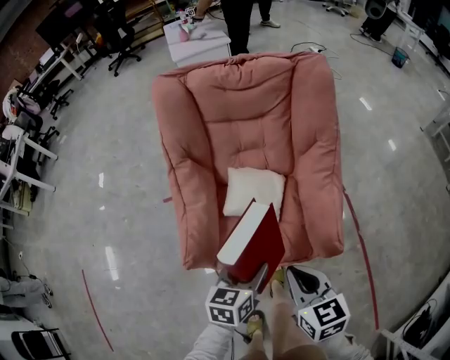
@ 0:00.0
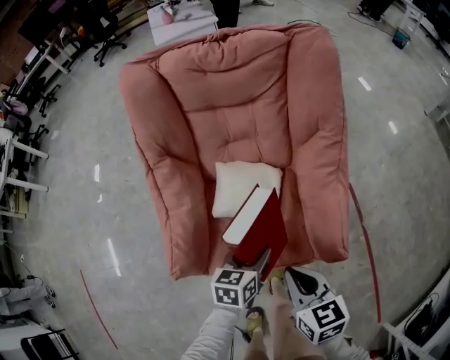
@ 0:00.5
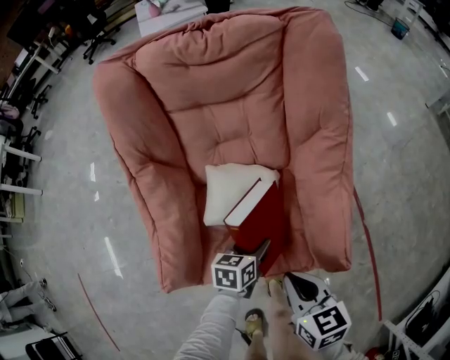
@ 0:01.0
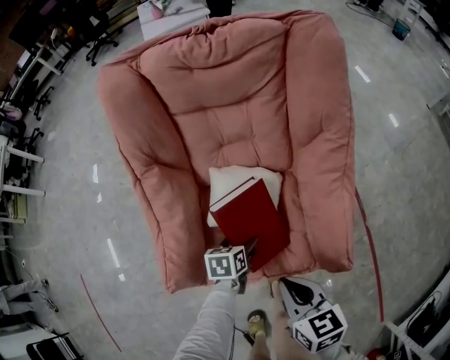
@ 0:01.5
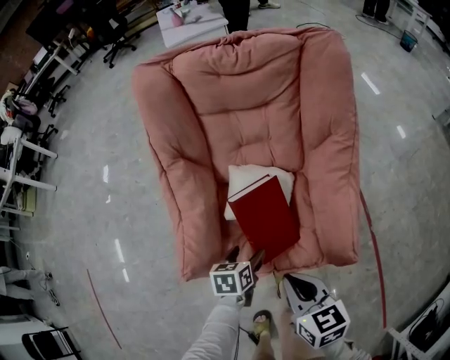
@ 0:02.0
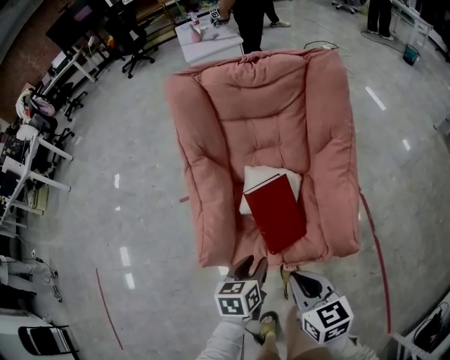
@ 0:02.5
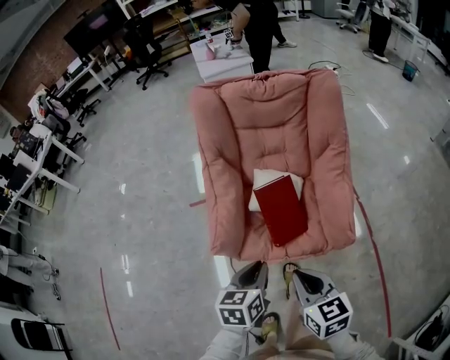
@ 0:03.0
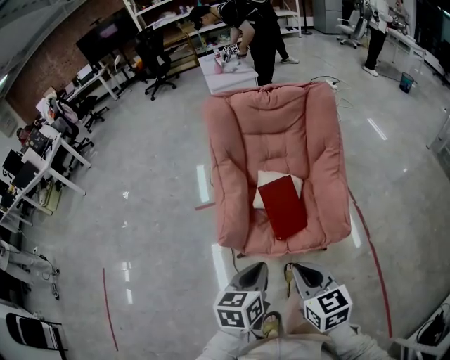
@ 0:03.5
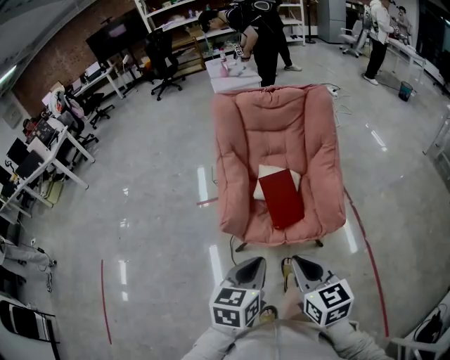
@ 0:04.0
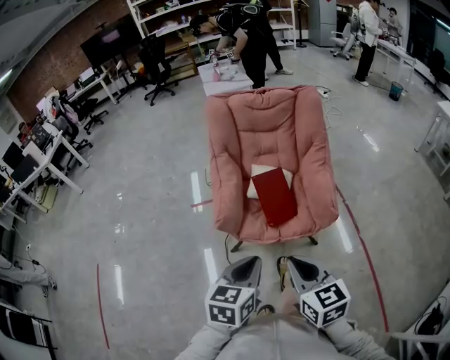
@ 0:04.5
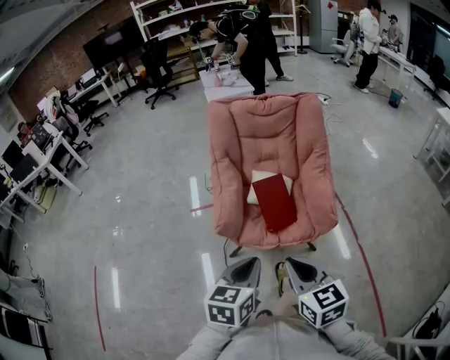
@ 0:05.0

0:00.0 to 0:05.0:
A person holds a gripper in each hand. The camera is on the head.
0:00.0 to 0:02.5: The right gripper goes downward and returns, some 10 cm each way. Meanwhile the left gripper moves approximately 20 cm downward and comes back, and opens, then closes again.
0:02.5 to 0:05.0: The two grippers go about 25 cm backward and upward. The left gripper turns by roughly 20 degrees, and closes.

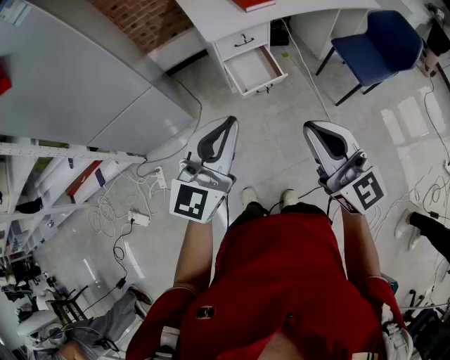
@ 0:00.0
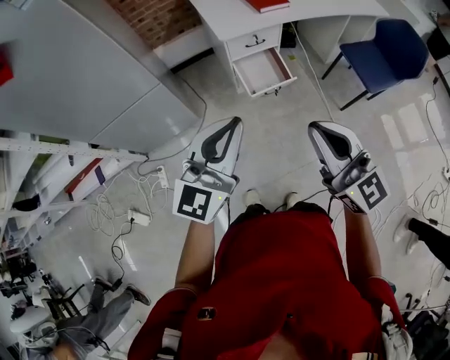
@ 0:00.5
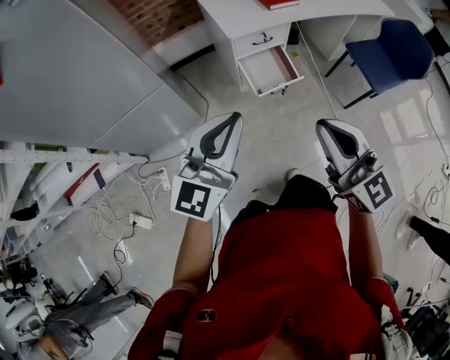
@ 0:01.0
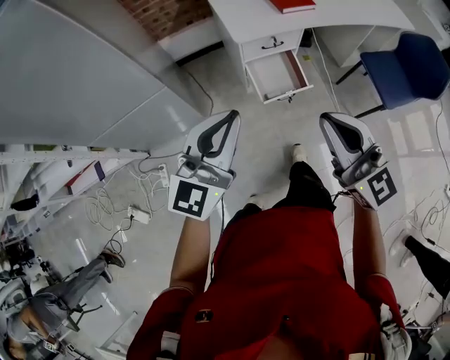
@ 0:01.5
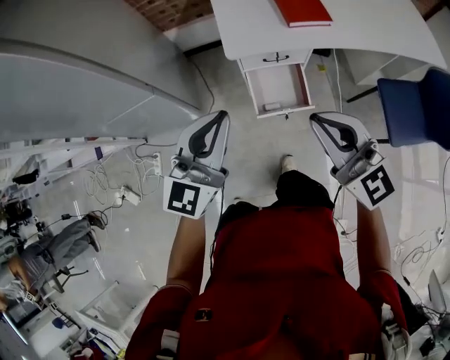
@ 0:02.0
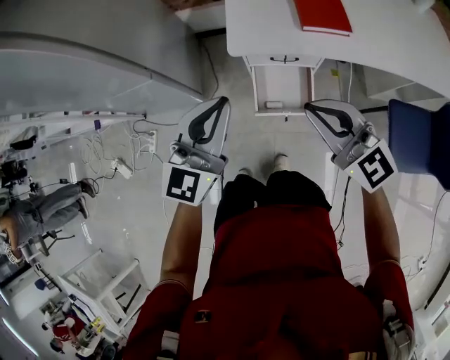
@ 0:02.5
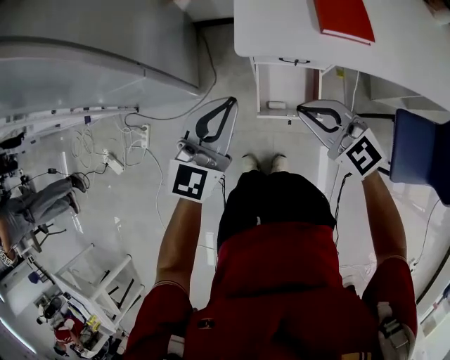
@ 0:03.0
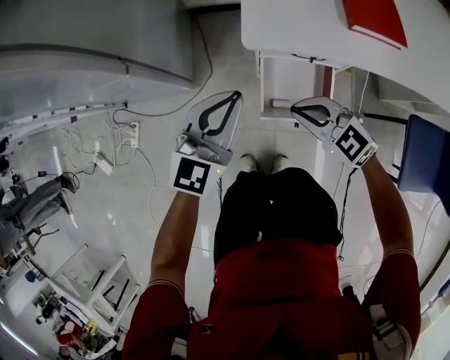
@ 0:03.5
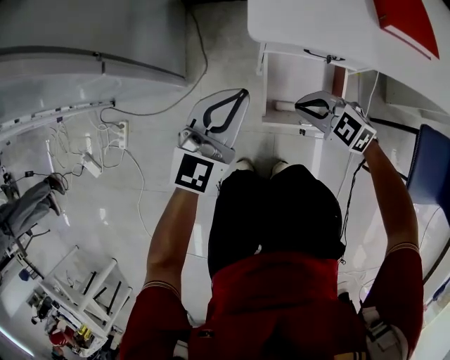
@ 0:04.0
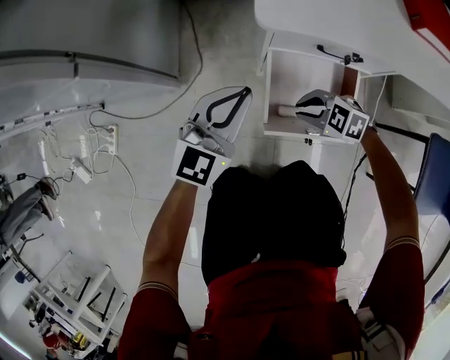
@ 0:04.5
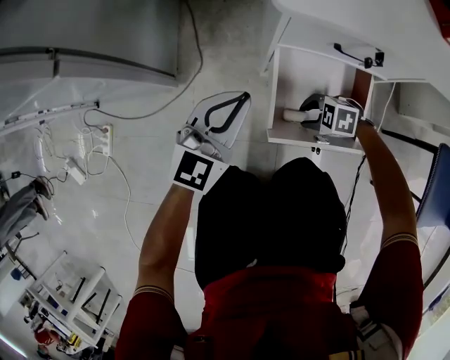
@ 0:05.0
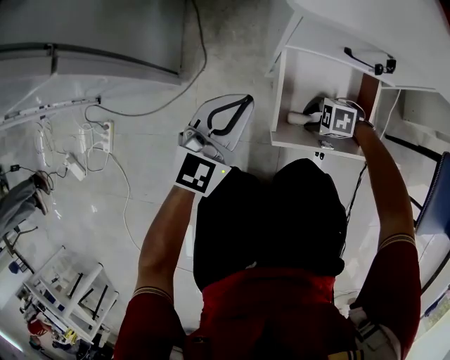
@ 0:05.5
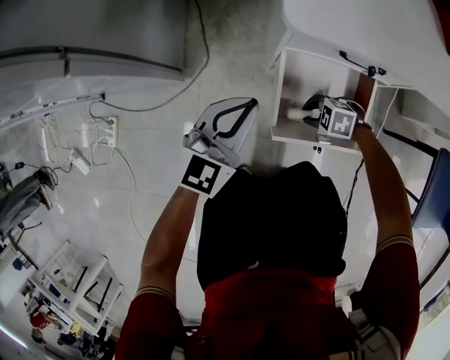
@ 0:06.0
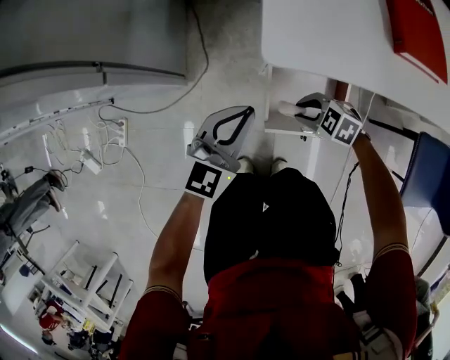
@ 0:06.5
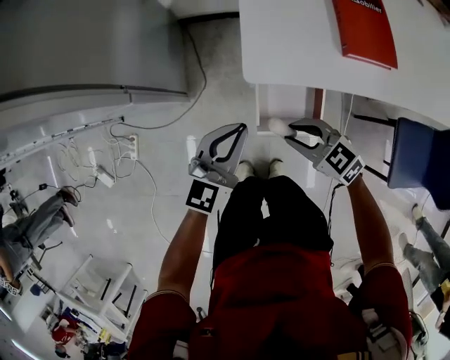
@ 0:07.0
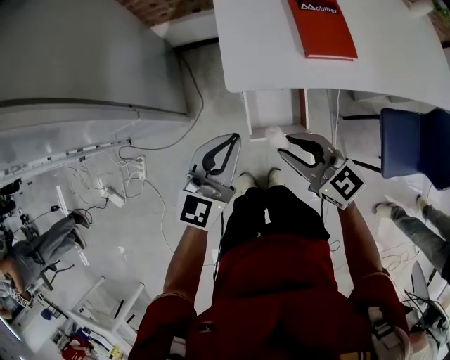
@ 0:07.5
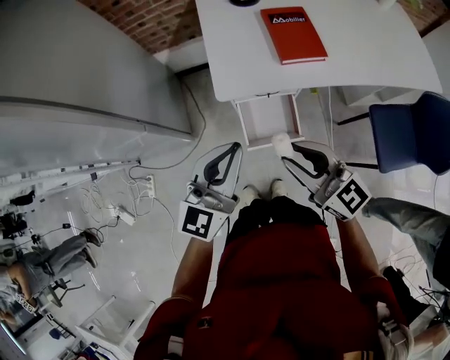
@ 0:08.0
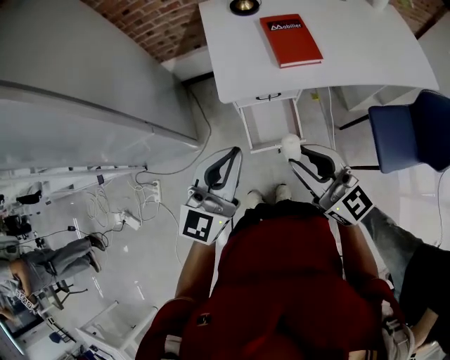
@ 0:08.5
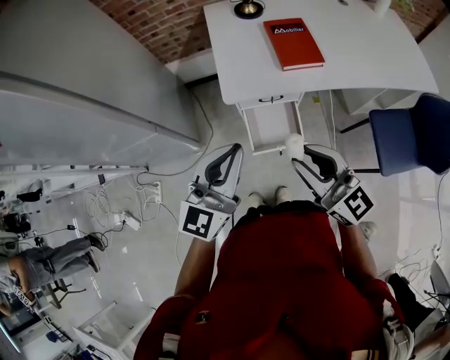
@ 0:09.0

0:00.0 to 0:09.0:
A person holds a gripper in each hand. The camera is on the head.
0:00.0 to 0:02.0: The grippers both shift forward by approximately 30 cm. The right gripper rotates roughly 20 degrees.
0:02.0 to 0:04.5: The two grippers go approximately 50 cm downward. The right gripper tilts its fingers roughly 50 degrees downward.
0:04.5 to 0:07.0: Both grippers travel together upward, some 25 cm. The right gripper swivels some 30 degrees.
0:07.0 to 0:09.0: The right gripper travels upward by some 30 cm, and tilts its fingers approximately 40 degrees upward. The left gripper goes some 25 cm upward and backward.

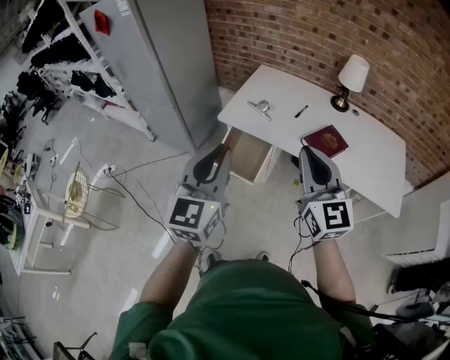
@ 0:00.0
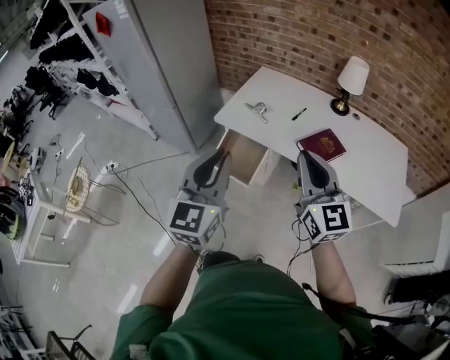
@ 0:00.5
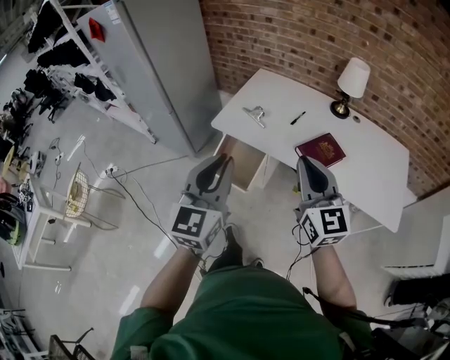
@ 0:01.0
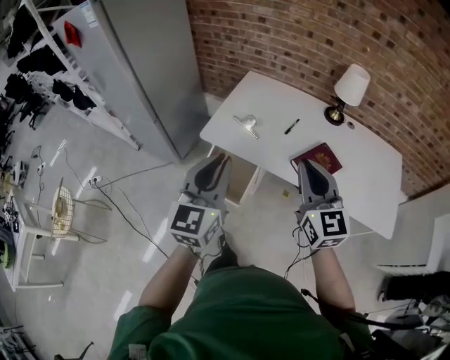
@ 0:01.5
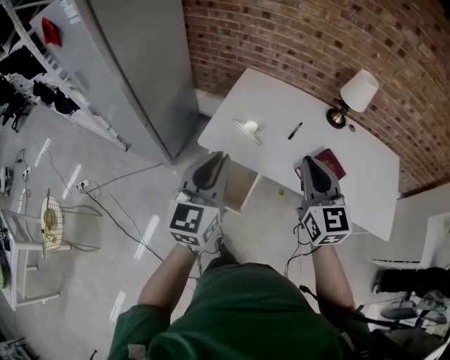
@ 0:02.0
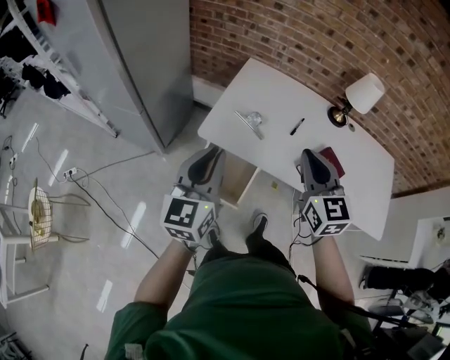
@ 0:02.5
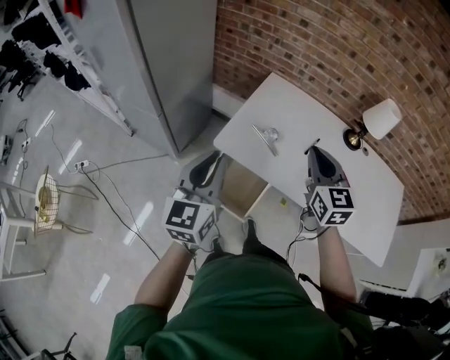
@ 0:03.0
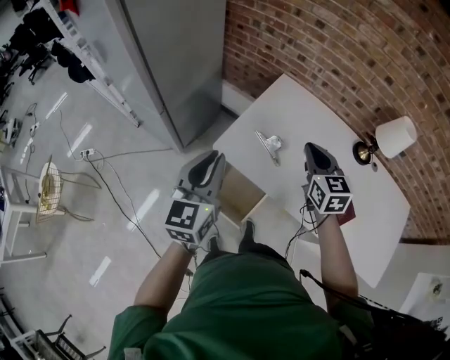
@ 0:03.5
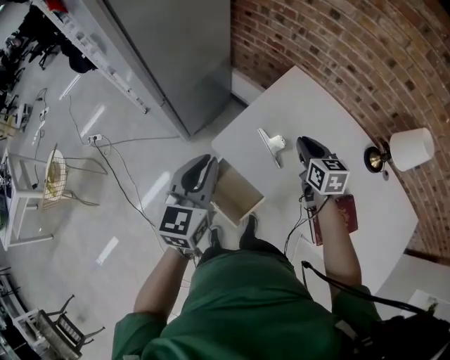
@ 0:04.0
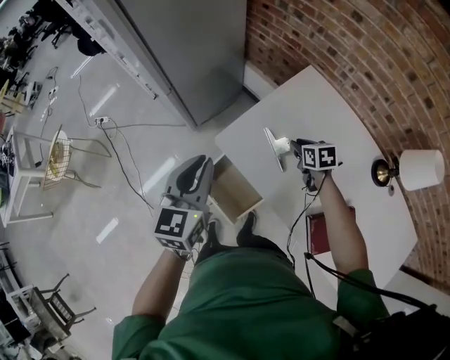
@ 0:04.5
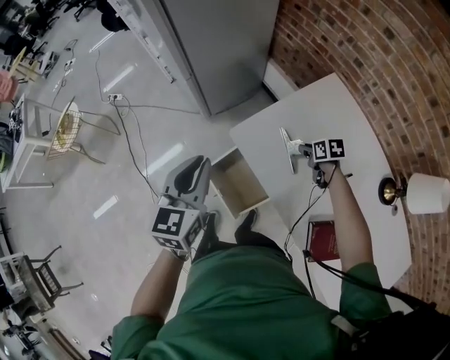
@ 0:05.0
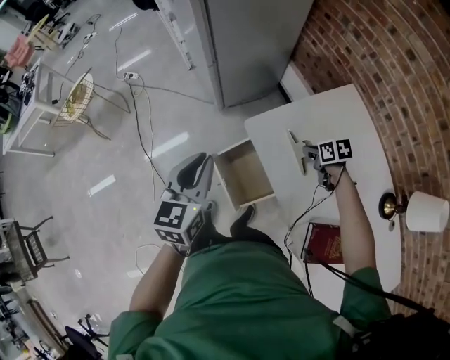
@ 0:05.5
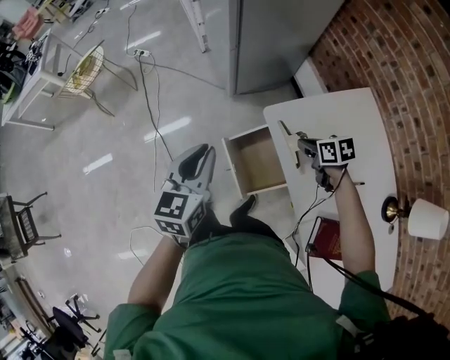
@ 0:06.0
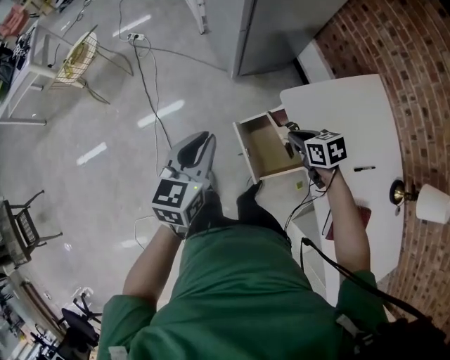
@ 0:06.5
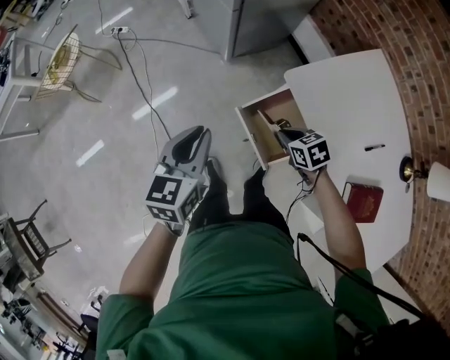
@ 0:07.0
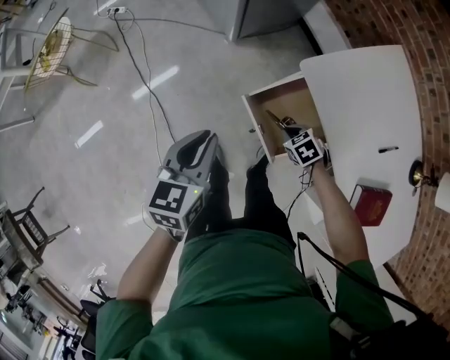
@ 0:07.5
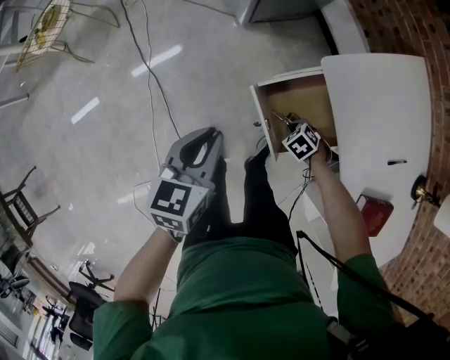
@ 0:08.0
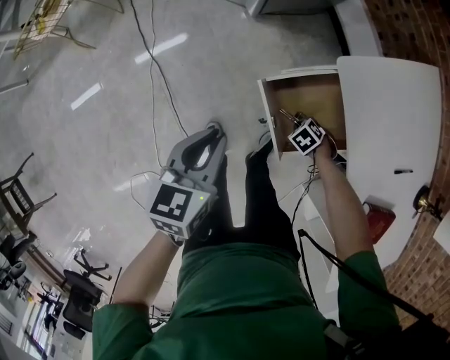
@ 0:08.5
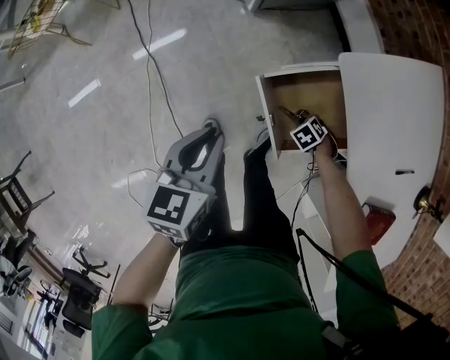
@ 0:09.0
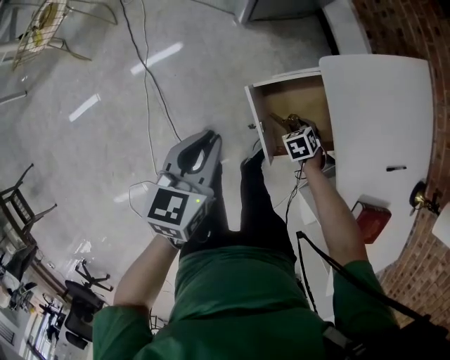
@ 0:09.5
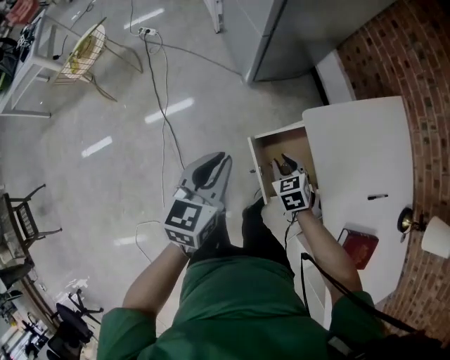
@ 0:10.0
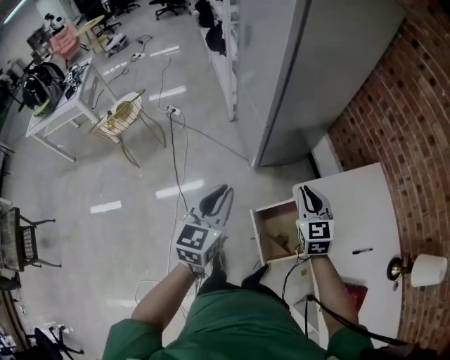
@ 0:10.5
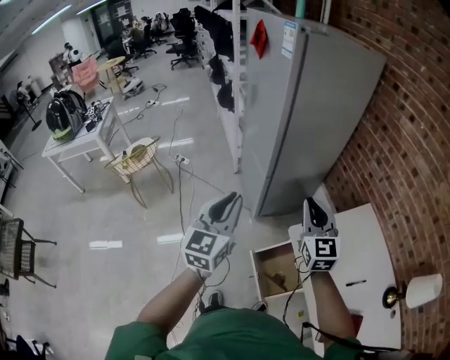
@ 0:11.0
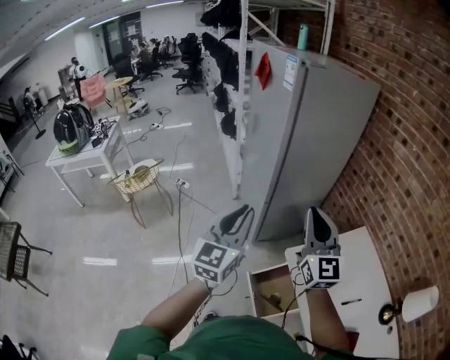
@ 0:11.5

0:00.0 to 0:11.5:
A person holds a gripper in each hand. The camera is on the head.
0:00.0 to 0:02.0: Both grippers travel together forward, approximately 25 cm.
0:02.0 to 0:04.0: The right gripper moves forward and downward, approximately 35 cm, and rotates approximately 40 degrees. The left gripper travels forward and downward by some 15 cm, and changes its angle by some 20 degrees.
0:04.0 to 0:06.0: The left gripper moves about 15 cm, and swivels about 30 degrees. Meanwhile the right gripper ends up roughly 20 cm from where it was, and changes its angle by about 50 degrees.
0:06.0 to 0:07.5: The right gripper is displaced downward by approximately 20 cm, and changes its angle by some 30 degrees. Meanwhile the left gripper moves downward, about 15 cm.
0:07.5 to 0:09.5: The right gripper is displaced downward by roughly 10 cm, and opens, while the left gripper shifts approximately 5 cm downward.
0:09.5 to 0:11.5: The left gripper moves upward, roughly 40 cm, and tips its fingers upward by about 40 degrees. Meanwhile the right gripper is displaced upward by roughly 70 cm, angles its fingers upward, by some 90 degrees, and closes its fingers.

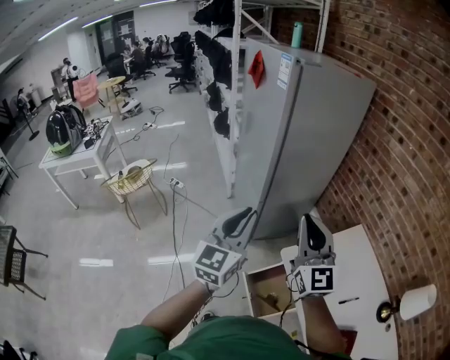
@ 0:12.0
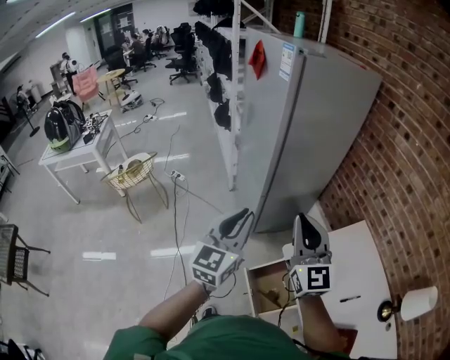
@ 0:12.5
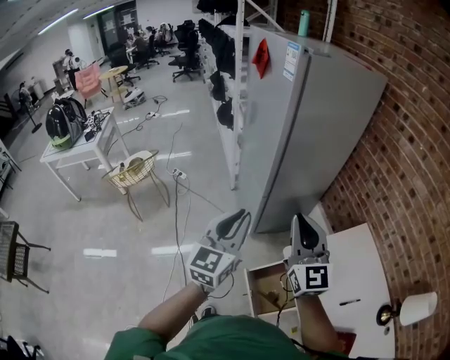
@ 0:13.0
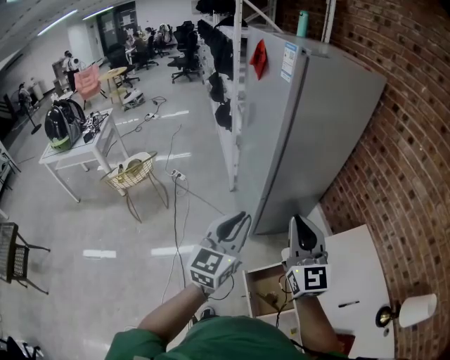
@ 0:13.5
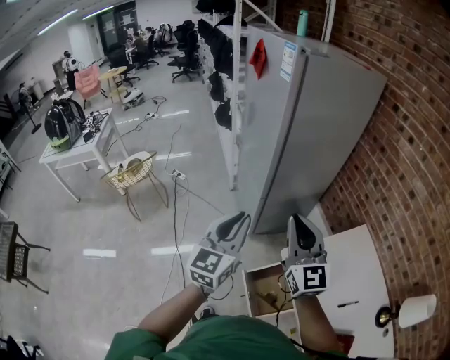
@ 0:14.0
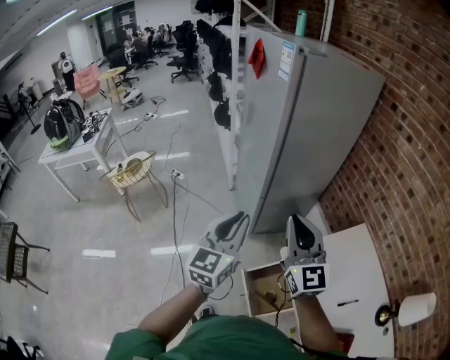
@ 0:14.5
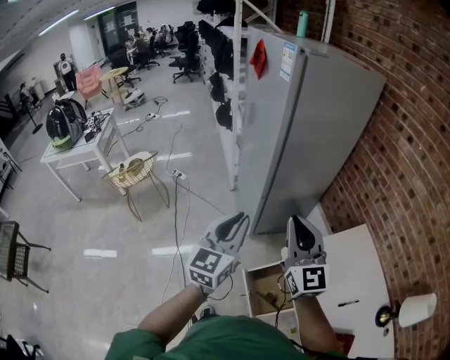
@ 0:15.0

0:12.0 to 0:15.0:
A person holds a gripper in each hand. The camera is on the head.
0:12.0 to 0:13.5: The right gripper shifts by approximately 5 cm. Meanwhile the left gripper moves roughly 5 cm.
0:13.5 to 0:15.0: Neither gripper changes place.
